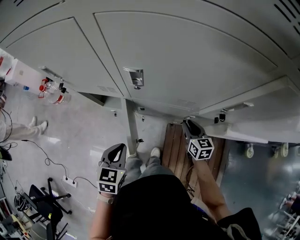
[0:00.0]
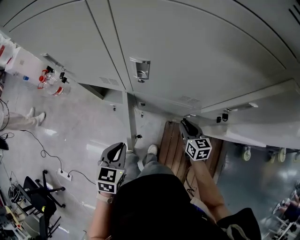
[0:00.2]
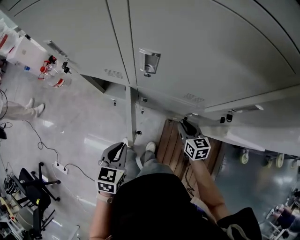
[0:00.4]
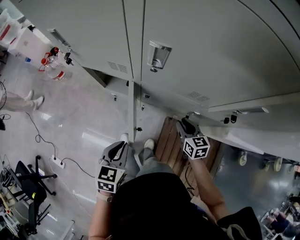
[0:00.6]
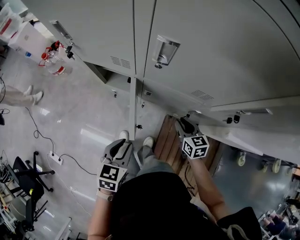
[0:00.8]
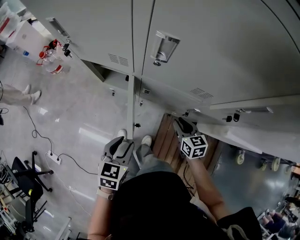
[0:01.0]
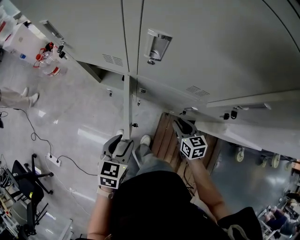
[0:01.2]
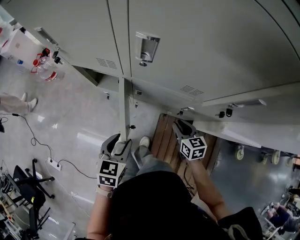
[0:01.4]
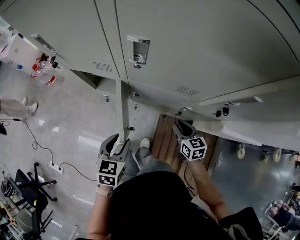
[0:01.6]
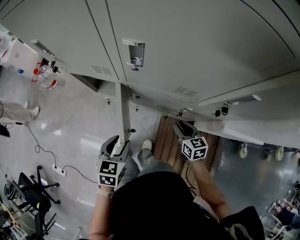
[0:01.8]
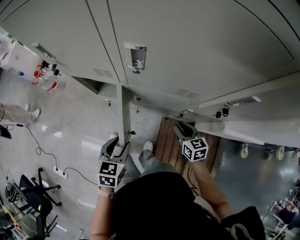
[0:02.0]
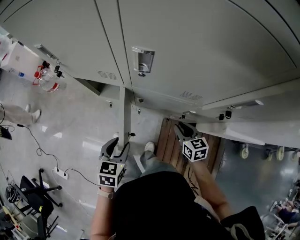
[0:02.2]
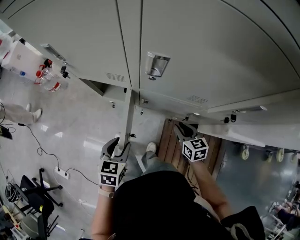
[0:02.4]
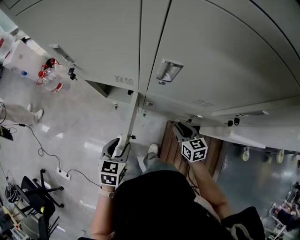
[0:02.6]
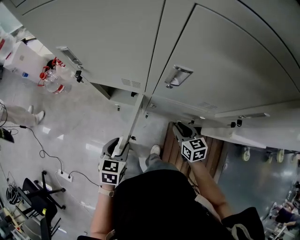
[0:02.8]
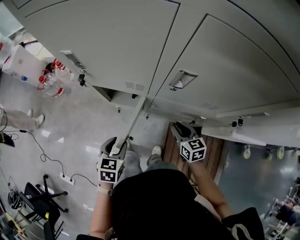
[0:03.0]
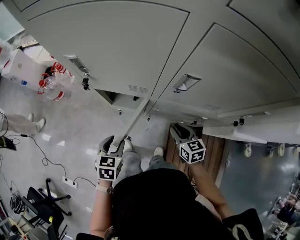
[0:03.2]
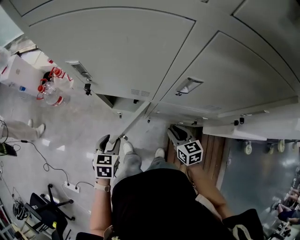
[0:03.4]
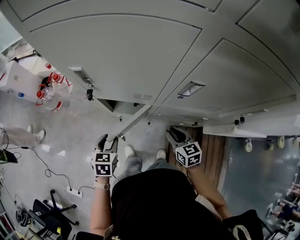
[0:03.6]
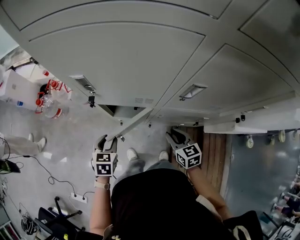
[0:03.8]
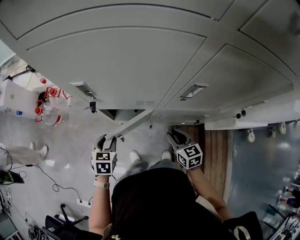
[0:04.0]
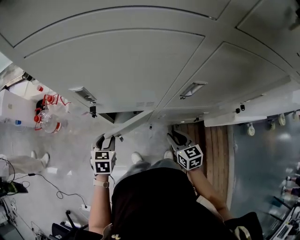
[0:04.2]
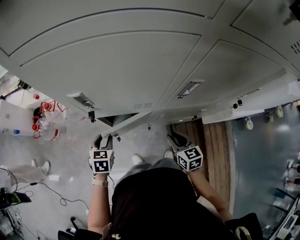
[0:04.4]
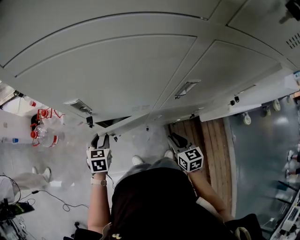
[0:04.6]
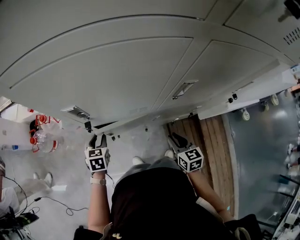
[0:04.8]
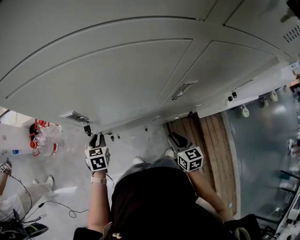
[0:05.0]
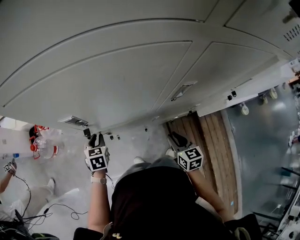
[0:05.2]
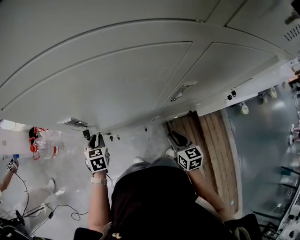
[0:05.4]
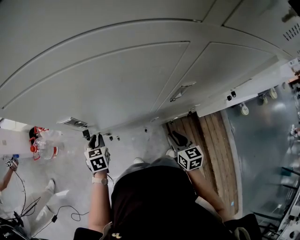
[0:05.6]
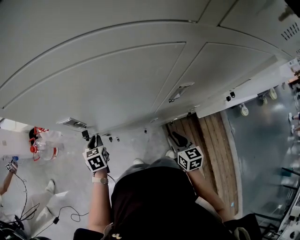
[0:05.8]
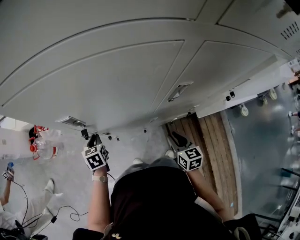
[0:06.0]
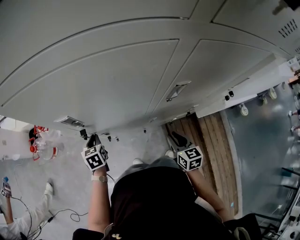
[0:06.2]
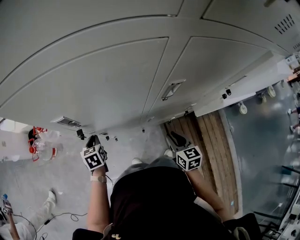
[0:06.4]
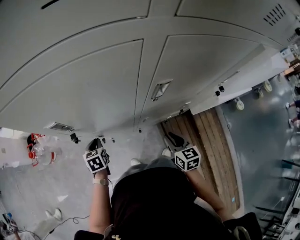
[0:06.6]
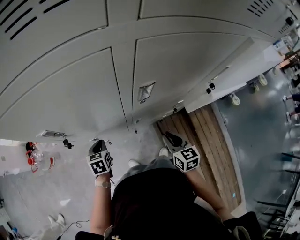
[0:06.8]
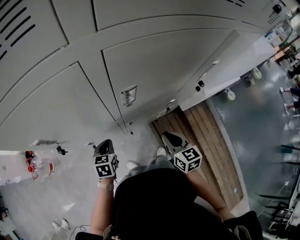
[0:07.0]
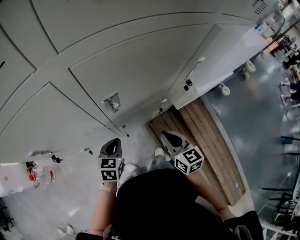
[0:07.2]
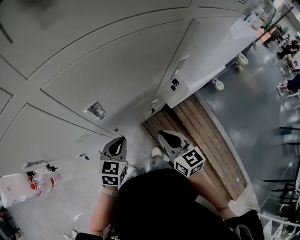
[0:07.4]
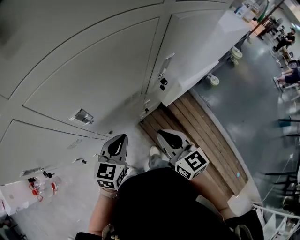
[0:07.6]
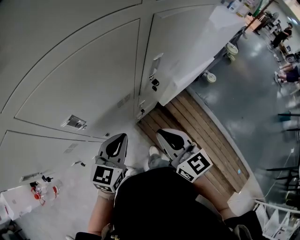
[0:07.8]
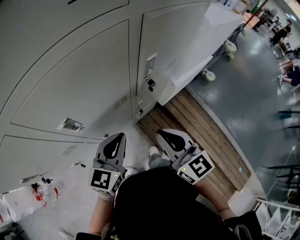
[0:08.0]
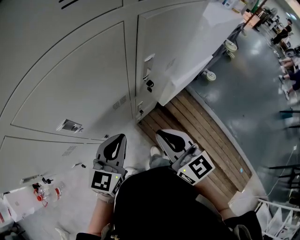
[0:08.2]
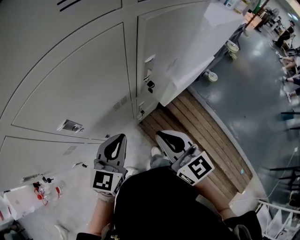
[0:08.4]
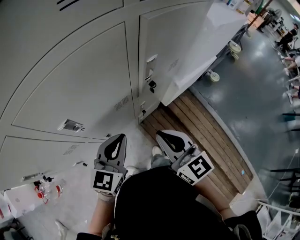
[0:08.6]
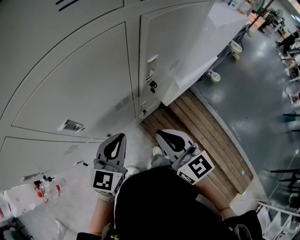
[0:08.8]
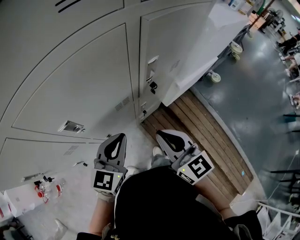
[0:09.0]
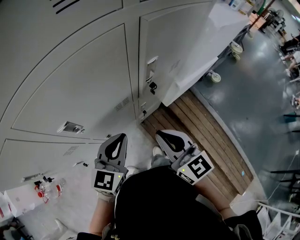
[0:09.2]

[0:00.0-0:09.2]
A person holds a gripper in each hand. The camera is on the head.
0:00.0 to 0:01.6: The right gripper ends up about 5 cm from where it was; the left gripper heads downward, covering about 5 cm, and opens up.
0:01.6 to 0:03.0: The grippers both shift to the left by some 15 cm.
0:03.0 to 0:04.6: The left gripper goes roughly 25 cm forward and to the left; the right gripper heads to the left, covering roughly 10 cm, and turns by approximately 20 degrees.
0:04.6 to 0:06.2: The left gripper goes about 5 cm forward, and closes.
0:06.2 to 0:07.6: The right gripper is displaced upward by about 20 cm, and swivels roughly 20 degrees, while the left gripper ends up approximately 40 cm from where it was, and rotates roughly 60 degrees.
0:07.6 to 0:09.2: The grippers both shift upward by roughly 5 cm.

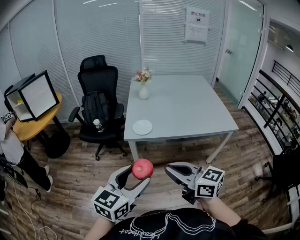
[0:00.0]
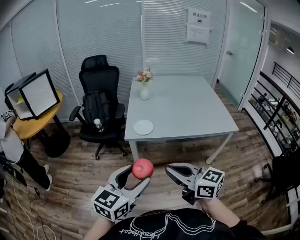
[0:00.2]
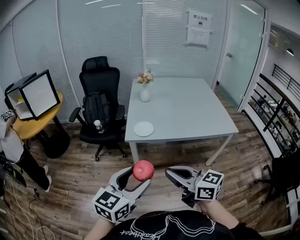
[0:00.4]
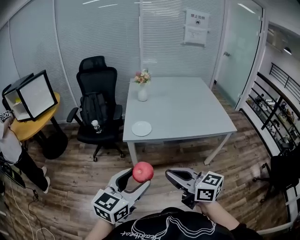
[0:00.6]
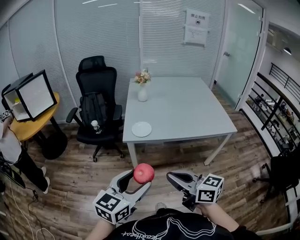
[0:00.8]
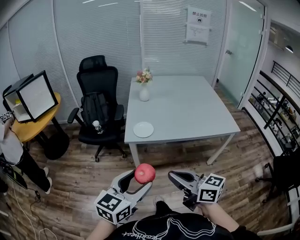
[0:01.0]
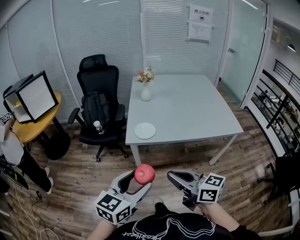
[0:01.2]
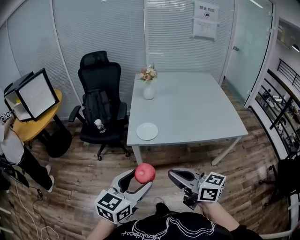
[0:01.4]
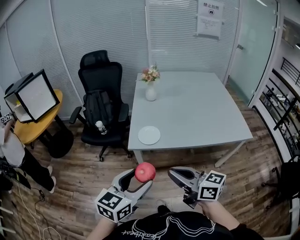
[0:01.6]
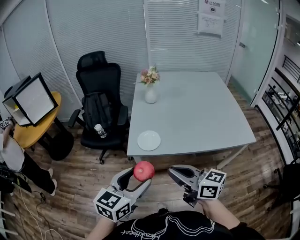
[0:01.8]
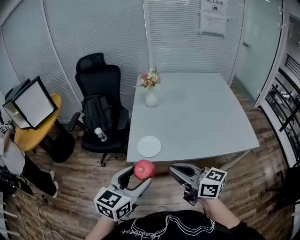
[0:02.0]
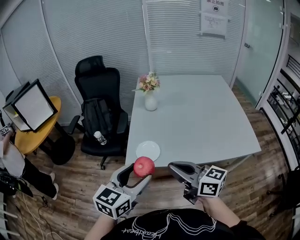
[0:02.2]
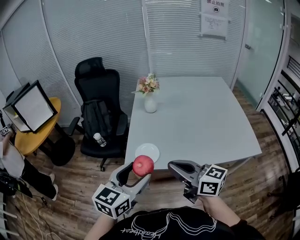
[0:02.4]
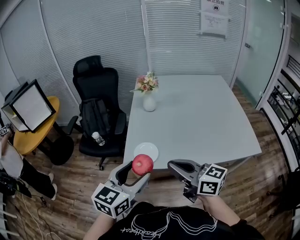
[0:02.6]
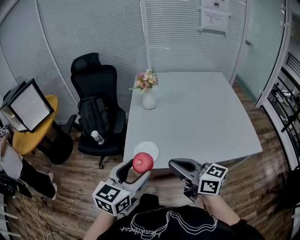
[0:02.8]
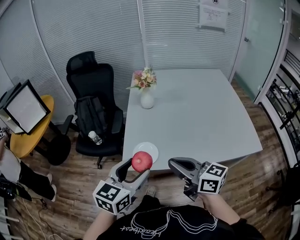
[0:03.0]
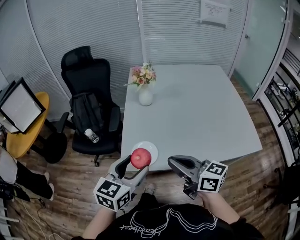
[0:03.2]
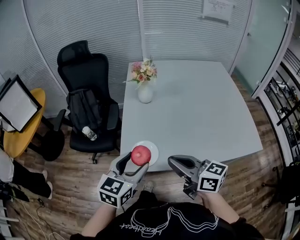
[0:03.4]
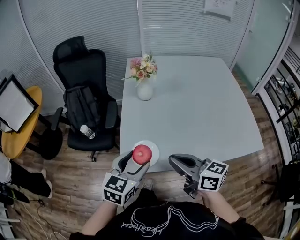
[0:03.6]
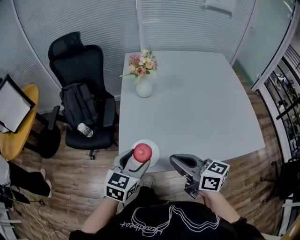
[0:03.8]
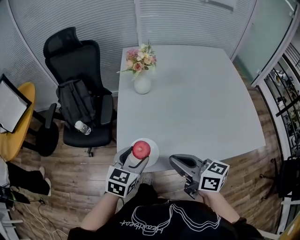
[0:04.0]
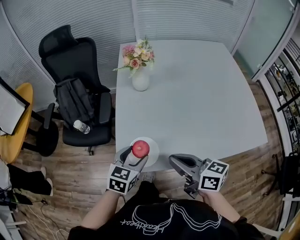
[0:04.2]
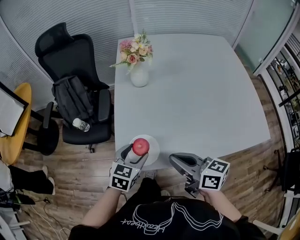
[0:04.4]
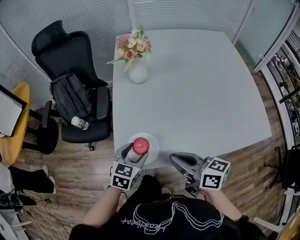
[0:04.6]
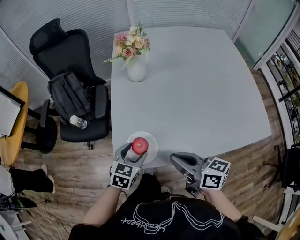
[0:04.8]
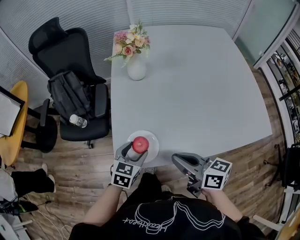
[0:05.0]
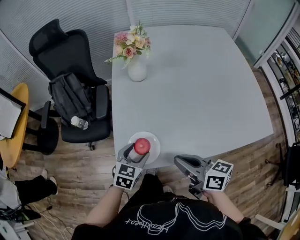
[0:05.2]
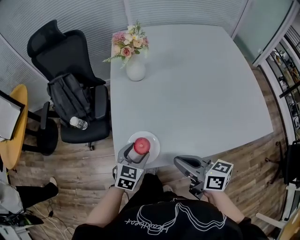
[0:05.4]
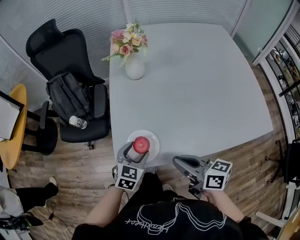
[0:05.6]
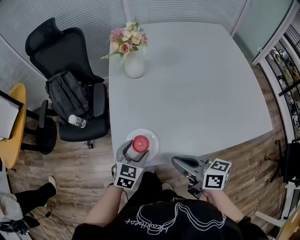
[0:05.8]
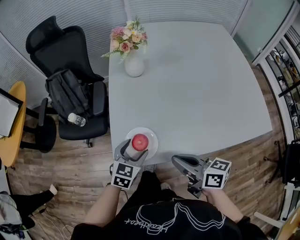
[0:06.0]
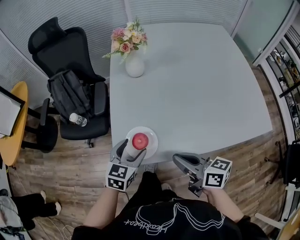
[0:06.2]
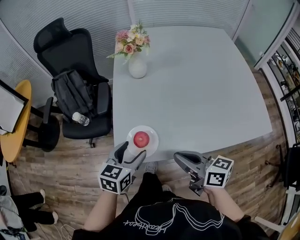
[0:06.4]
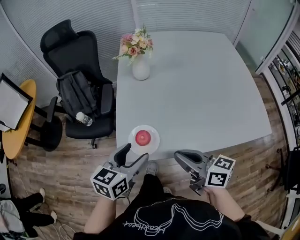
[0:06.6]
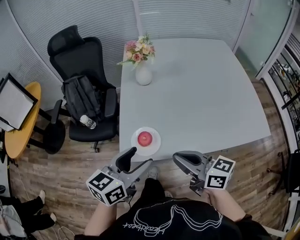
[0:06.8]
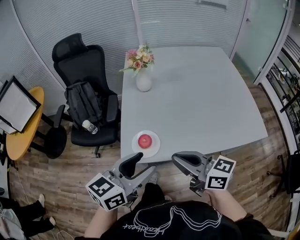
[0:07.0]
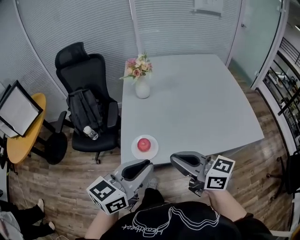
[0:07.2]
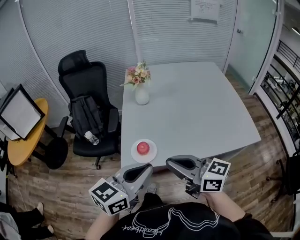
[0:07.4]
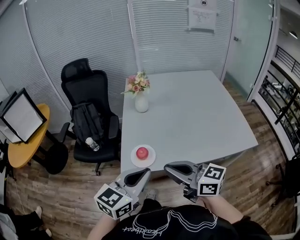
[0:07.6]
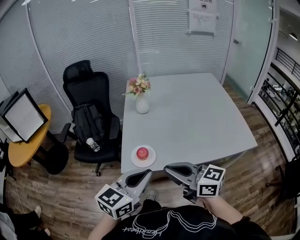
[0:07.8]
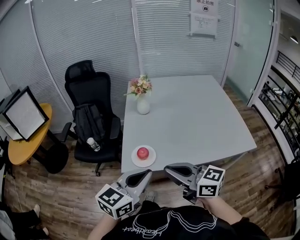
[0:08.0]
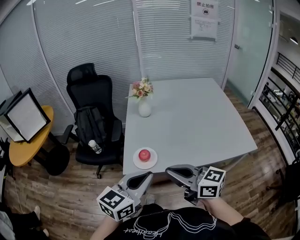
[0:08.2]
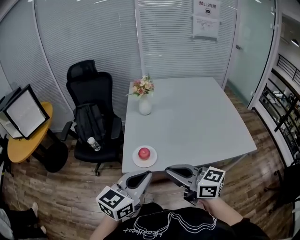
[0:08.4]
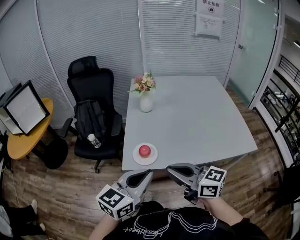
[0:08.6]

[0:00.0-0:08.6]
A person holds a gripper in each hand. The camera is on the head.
0:00.0 to 0:01.4: The two grippers go approximately 10 cm forward.
0:01.4 to 0:02.8: The two grippers go some 25 cm forward.
0:02.8 to 0:04.4: The right gripper is displaced forward and downward by approximately 15 cm, while the left gripper travels downward and forward by some 30 cm, and swivels roughly 20 degrees.
0:04.4 to 0:05.8: The left gripper travels downward by roughly 5 cm, while the right gripper moves approximately 5 cm.
0:05.8 to 0:07.2: The left gripper travels upward and backward by roughly 30 cm, rotates about 40 degrees, and closes up; the right gripper heads upward and backward, covering about 15 cm, and changes its angle by approximately 30 degrees.
0:07.2 to 0:08.6: The two grippers go about 5 cm backward.

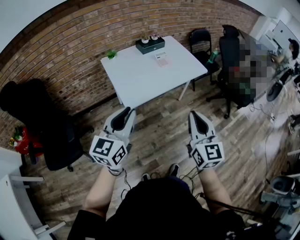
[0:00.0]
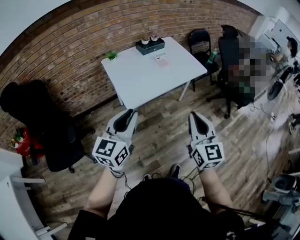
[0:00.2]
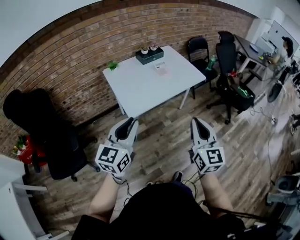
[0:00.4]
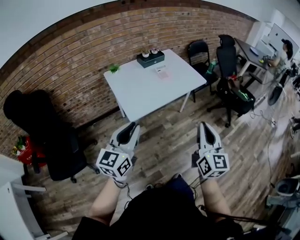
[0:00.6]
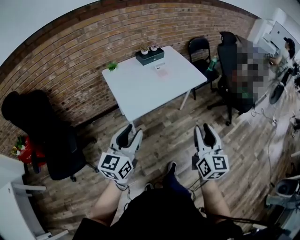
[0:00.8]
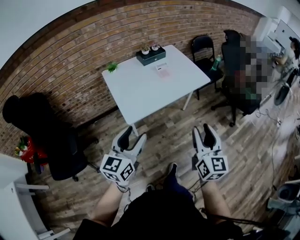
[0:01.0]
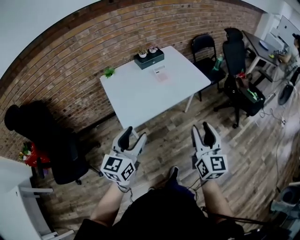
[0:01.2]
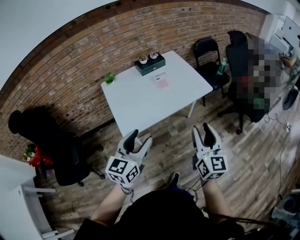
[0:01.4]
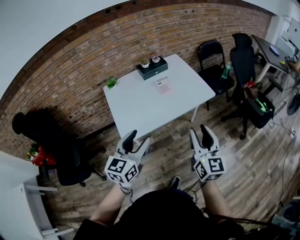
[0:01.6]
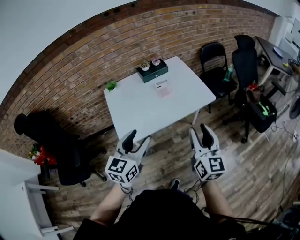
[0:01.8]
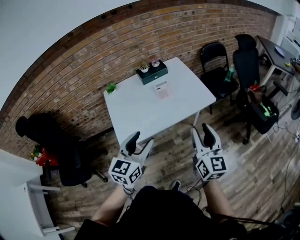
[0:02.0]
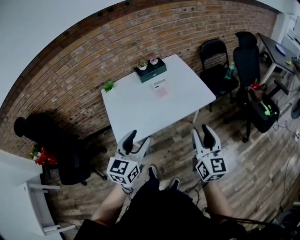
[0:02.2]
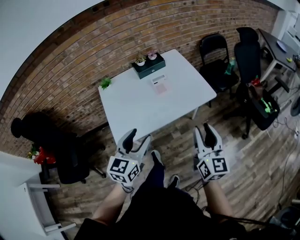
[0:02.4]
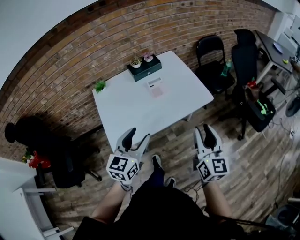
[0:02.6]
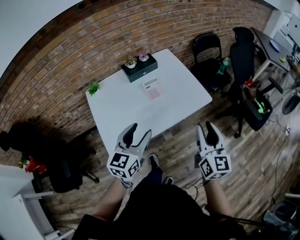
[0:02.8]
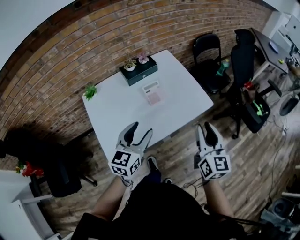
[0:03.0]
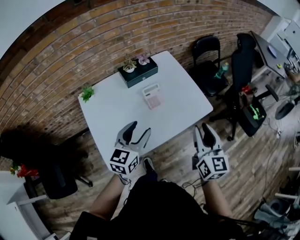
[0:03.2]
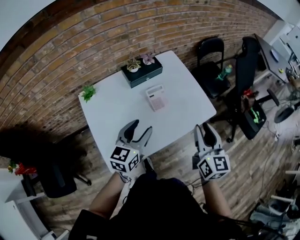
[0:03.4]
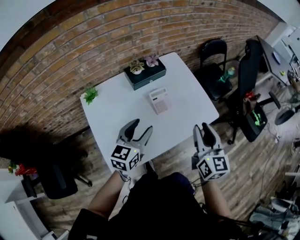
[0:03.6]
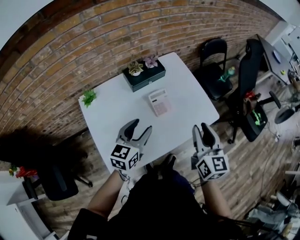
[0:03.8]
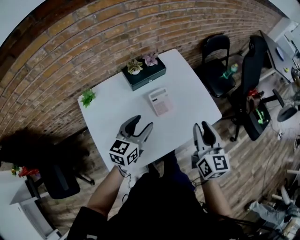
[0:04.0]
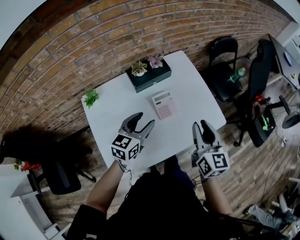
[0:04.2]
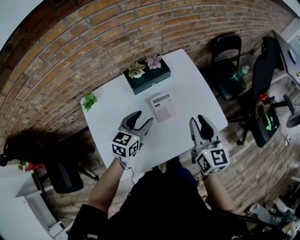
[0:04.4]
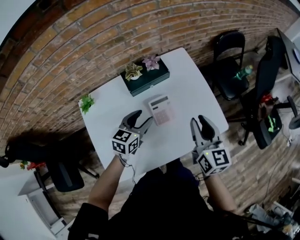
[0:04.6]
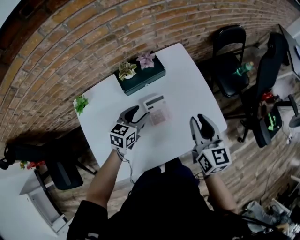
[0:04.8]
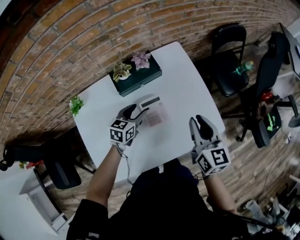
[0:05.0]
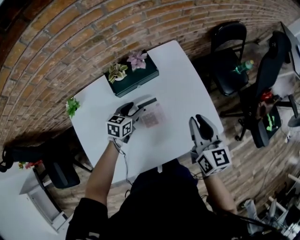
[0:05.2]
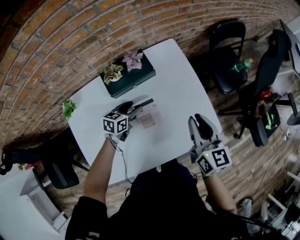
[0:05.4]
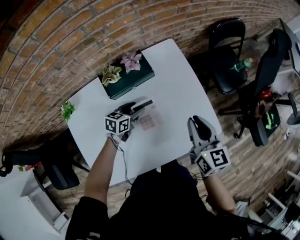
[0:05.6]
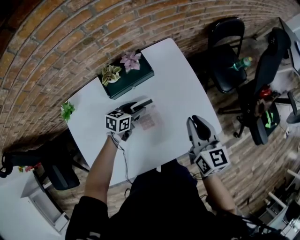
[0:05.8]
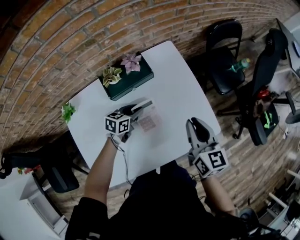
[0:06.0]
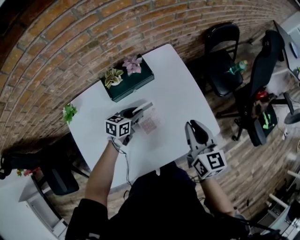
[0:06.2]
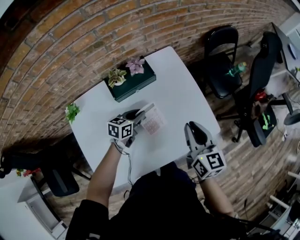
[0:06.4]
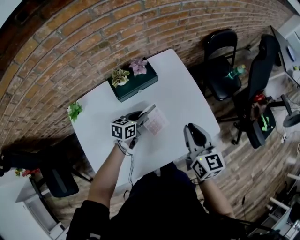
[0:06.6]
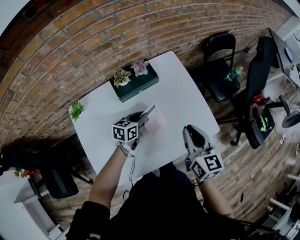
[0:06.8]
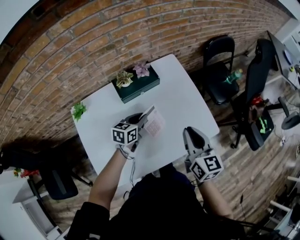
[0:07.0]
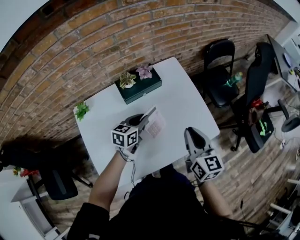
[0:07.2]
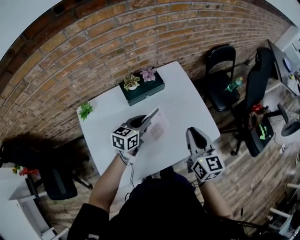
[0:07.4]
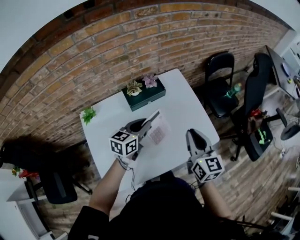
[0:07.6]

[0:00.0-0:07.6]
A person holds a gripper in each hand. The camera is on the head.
0:00.0 to 0:01.6: The grippers both shift forward and to the right by about 25 cm. The left gripper opens. The right gripper opens.
0:01.6 to 0:03.0: The grippers both shift forward by some 25 cm.
0:03.0 to 0:04.6: The right gripper heads forward and to the left, covering approximately 30 cm. Meanwhile the left gripper travels forward and downward by roughly 30 cm.
0:04.6 to 0:06.0: The right gripper shifts about 10 cm forward and downward, while the left gripper moves downward and forward, approximately 15 cm, rotates approximately 20 degrees, and closes.
0:06.0 to 0:07.6: The right gripper moves backward and upward, approximately 15 cm, while the left gripper goes about 25 cm upward and backward, changes its angle by about 20 degrees, and closes.
